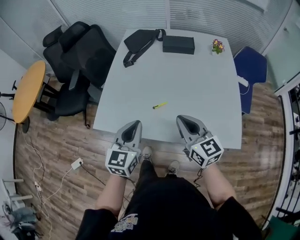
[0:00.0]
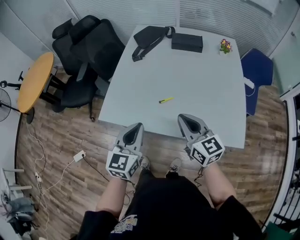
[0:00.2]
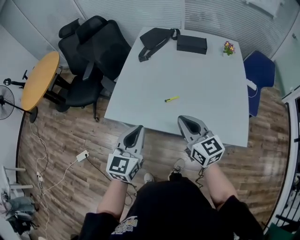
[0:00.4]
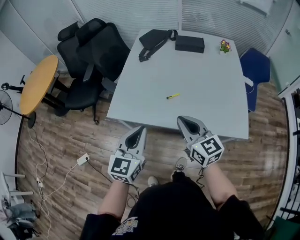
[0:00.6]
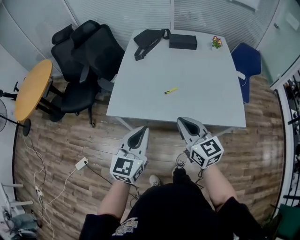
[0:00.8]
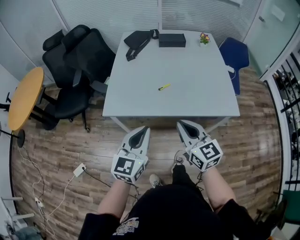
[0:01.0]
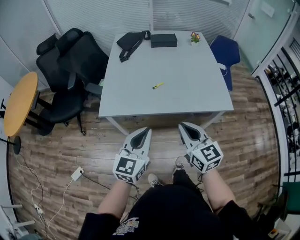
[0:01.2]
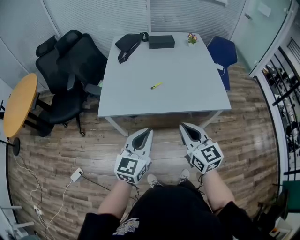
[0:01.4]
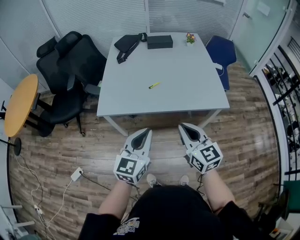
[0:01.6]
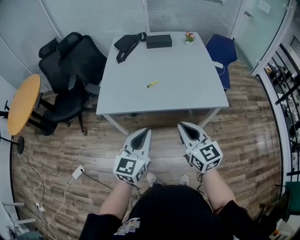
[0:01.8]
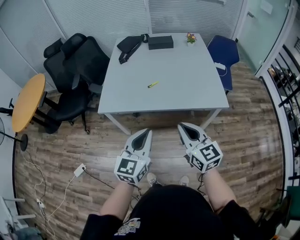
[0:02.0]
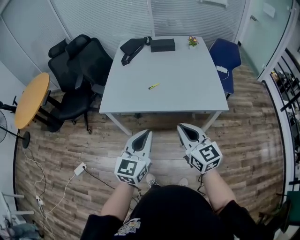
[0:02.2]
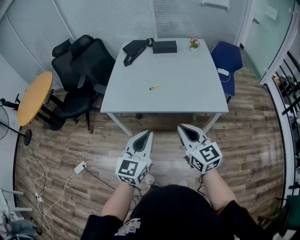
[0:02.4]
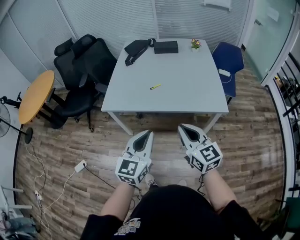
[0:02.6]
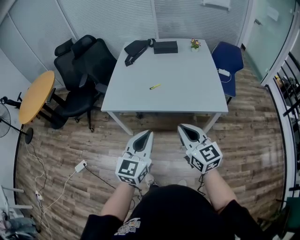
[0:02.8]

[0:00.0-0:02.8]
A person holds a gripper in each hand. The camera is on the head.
0:00.0 to 0:01.4: The grippers both shift backward by roughly 25 cm.
0:01.4 to 0:02.8: Both grippers move to the right and backward, approximately 10 cm.

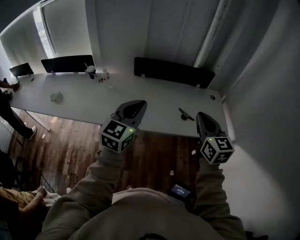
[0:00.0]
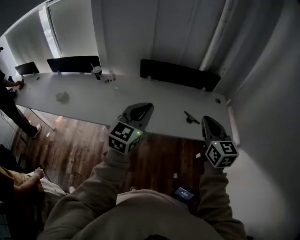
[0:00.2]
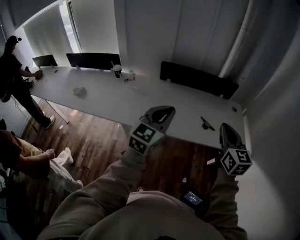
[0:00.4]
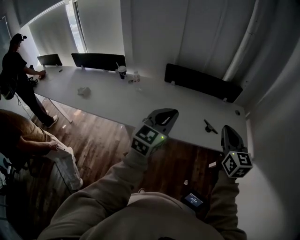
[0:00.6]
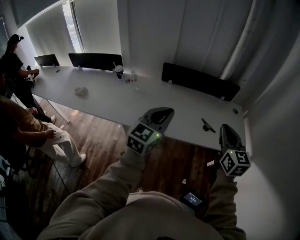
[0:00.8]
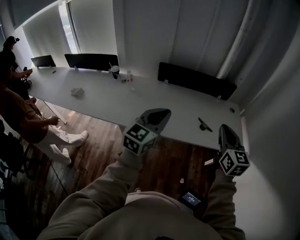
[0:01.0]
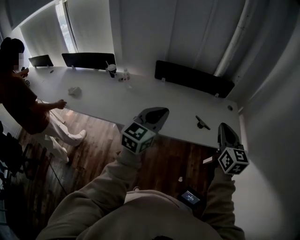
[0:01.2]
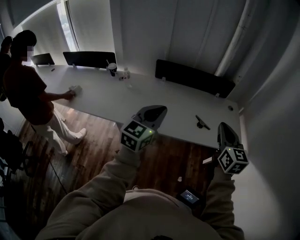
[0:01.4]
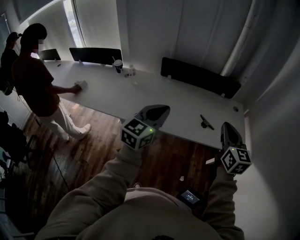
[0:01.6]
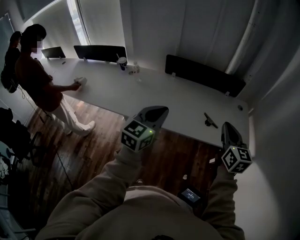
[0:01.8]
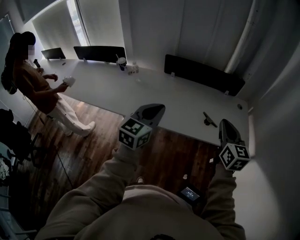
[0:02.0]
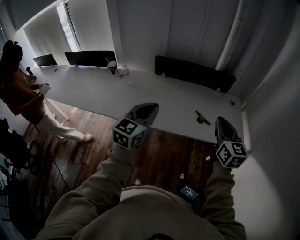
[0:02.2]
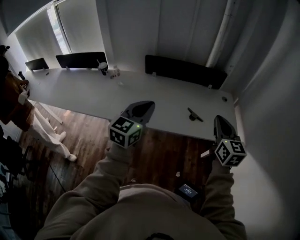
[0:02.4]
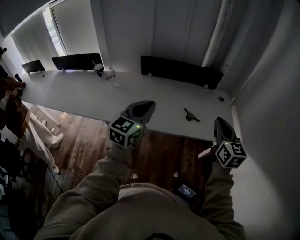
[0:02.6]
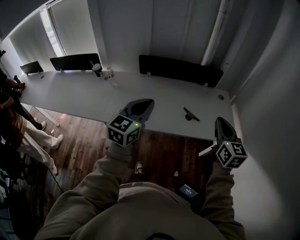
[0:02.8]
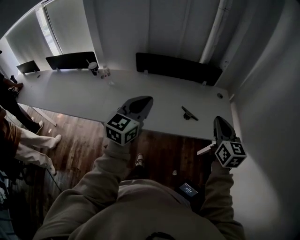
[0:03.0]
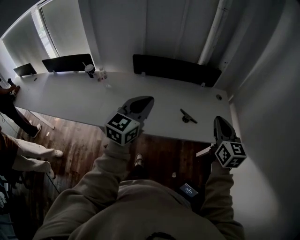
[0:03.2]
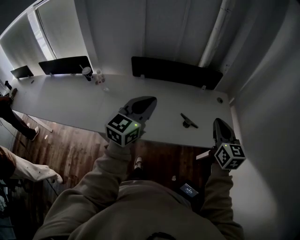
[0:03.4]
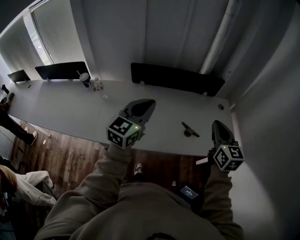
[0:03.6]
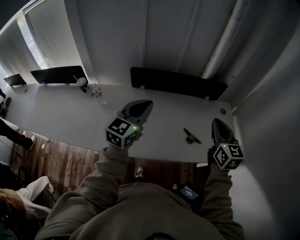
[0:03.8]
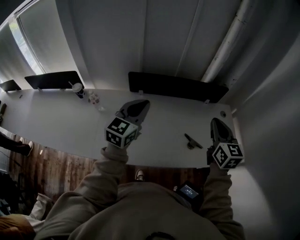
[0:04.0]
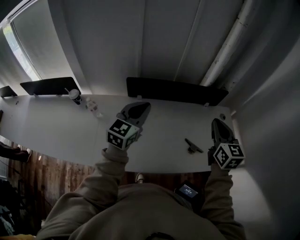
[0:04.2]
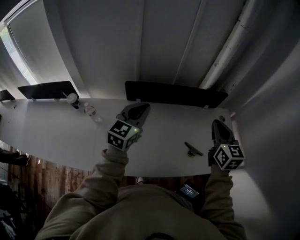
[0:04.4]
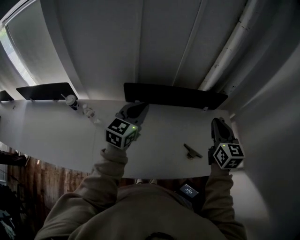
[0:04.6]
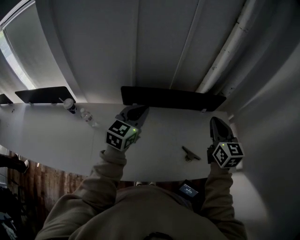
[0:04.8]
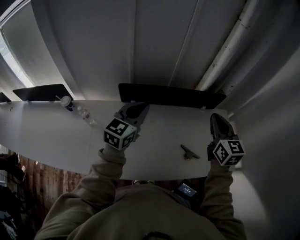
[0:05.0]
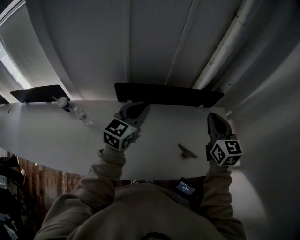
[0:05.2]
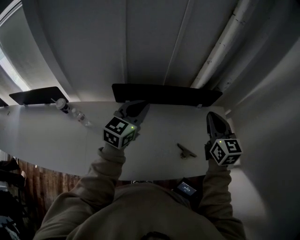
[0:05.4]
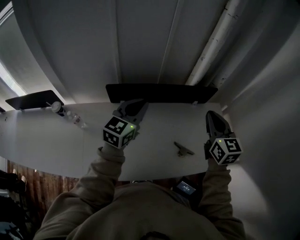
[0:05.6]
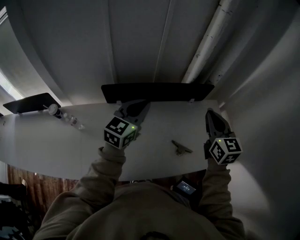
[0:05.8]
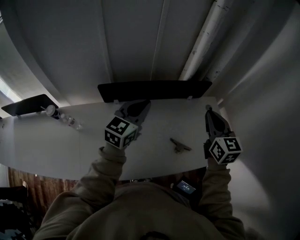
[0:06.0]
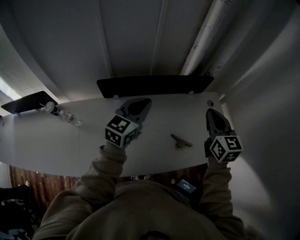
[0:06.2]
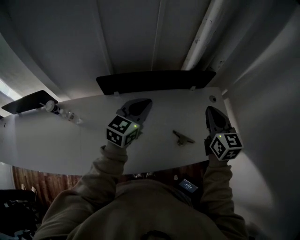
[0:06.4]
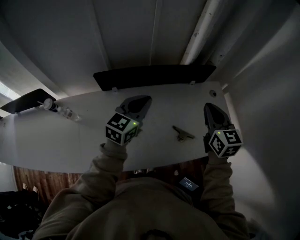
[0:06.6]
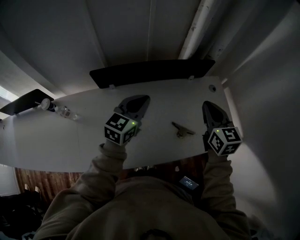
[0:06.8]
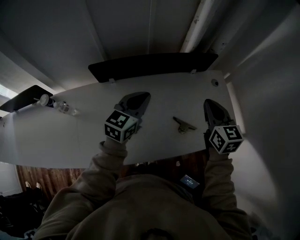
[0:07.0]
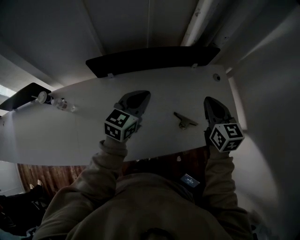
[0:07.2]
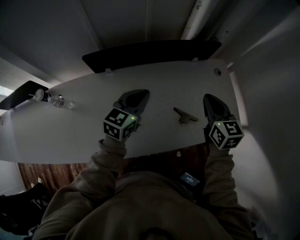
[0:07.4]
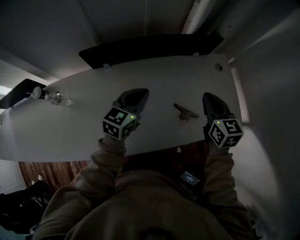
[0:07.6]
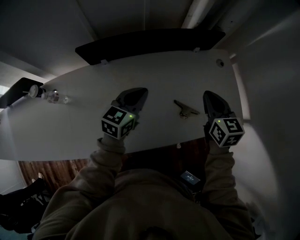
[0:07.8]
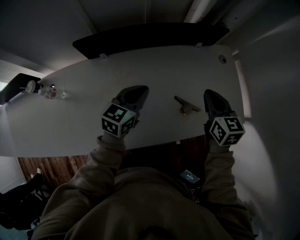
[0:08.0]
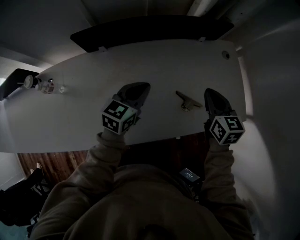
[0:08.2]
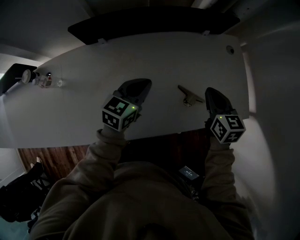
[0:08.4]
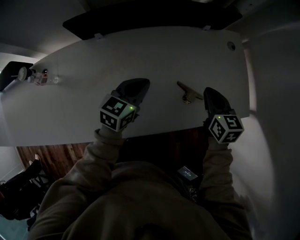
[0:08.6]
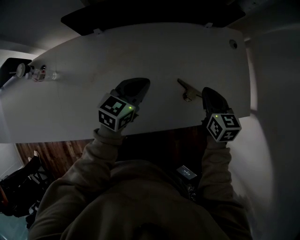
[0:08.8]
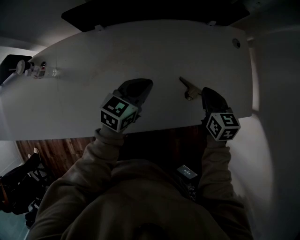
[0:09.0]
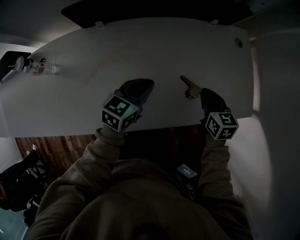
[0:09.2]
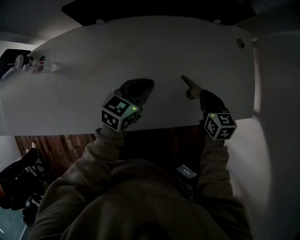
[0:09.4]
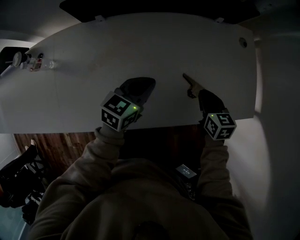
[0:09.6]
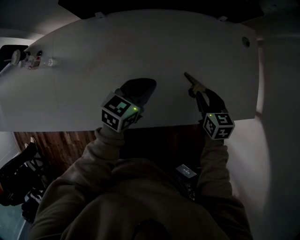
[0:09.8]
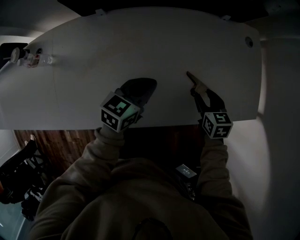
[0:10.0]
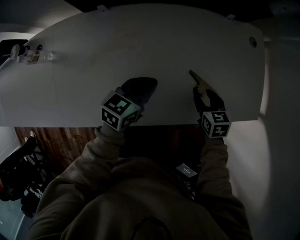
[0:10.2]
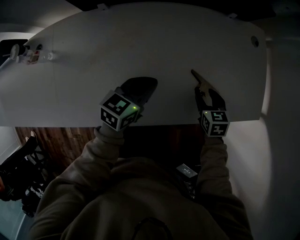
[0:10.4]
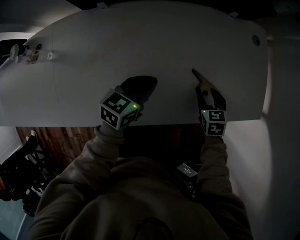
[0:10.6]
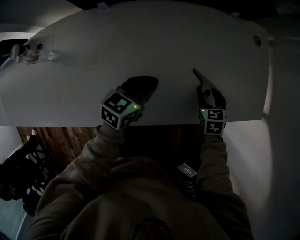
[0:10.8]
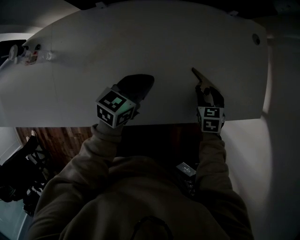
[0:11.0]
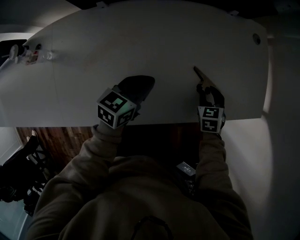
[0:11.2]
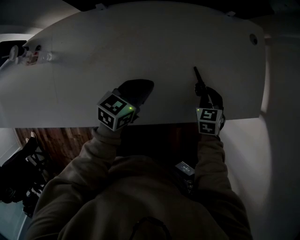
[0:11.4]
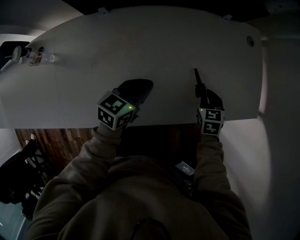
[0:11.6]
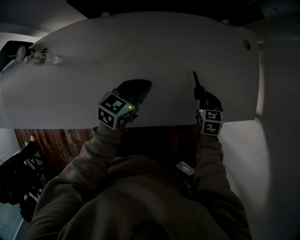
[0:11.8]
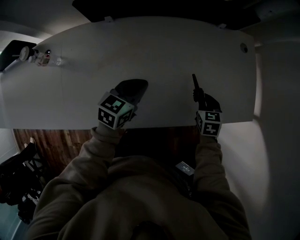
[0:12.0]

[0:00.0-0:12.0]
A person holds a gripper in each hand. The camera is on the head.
0:00.0 to 0:01.6: The right gripper shifts roughly 5 cm to the right.
0:01.6 to 0:03.0: The right gripper heads to the right, covering about 10 cm. The left gripper ends up some 5 cm from where it was.
0:03.0 to 0:04.4: The grippers both shift forward and to the left by some 35 cm.
0:04.4 to 0:06.0: The right gripper heads to the right and forward, covering some 10 cm. Meanwhile the left gripper shifts roughly 15 cm to the right and forward.
0:06.0 to 0:07.6: Both grippers travel together downward, approximately 15 cm.
0:07.6 to 0:09.0: Both grippers travel together downward, some 15 cm.
0:09.0 to 0:10.4: The right gripper moves downward, roughly 15 cm, and opens its fingers; the left gripper heads downward, covering roughly 5 cm.
0:10.4 to 0:12.0: The right gripper closes.

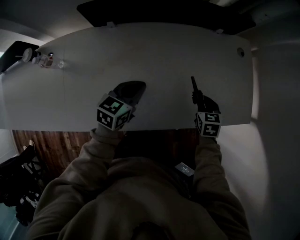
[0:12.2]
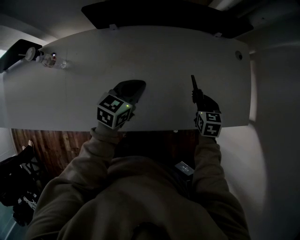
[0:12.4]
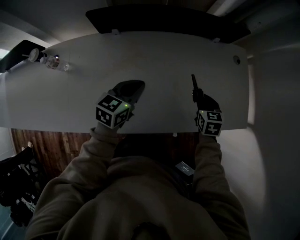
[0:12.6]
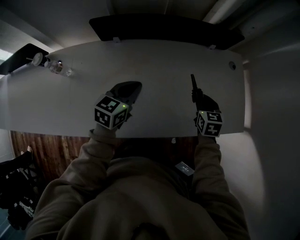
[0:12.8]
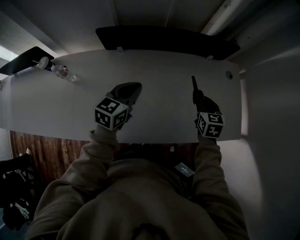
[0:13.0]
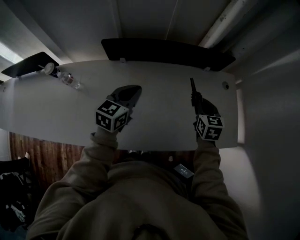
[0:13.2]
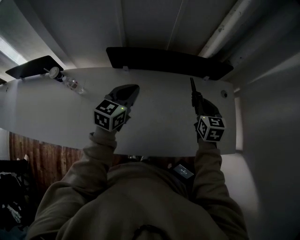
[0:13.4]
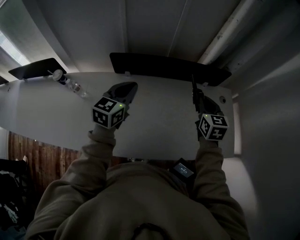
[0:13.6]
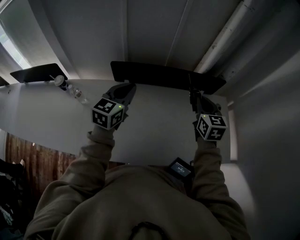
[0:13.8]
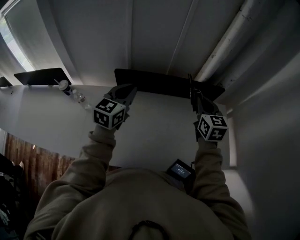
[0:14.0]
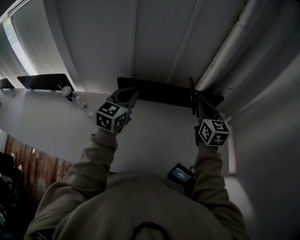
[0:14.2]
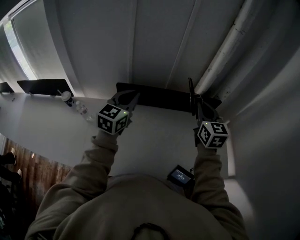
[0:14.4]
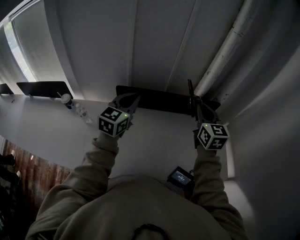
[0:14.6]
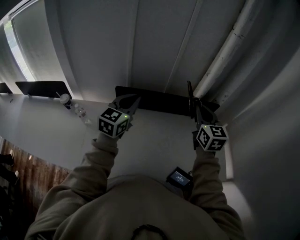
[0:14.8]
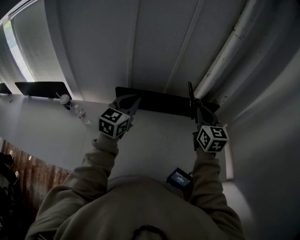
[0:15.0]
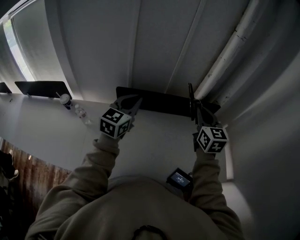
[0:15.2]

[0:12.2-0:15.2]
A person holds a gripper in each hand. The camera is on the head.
0:12.2 to 0:13.8: The right gripper goes approximately 35 cm upward, and tilts its fingers roughly 30 degrees upward. The left gripper goes roughly 30 cm upward and to the left, and turns by some 30 degrees.
0:13.8 to 0:15.2: Both grippers move upward, approximately 10 cm.

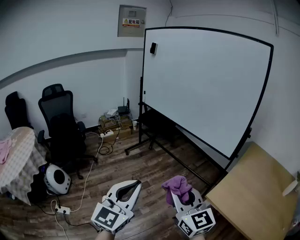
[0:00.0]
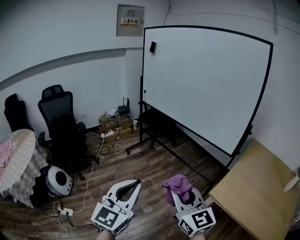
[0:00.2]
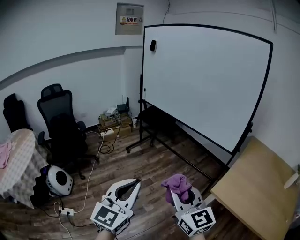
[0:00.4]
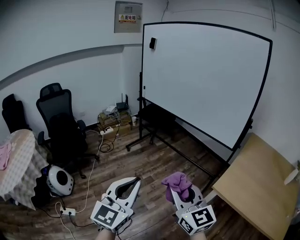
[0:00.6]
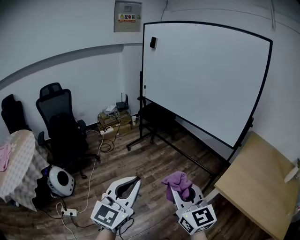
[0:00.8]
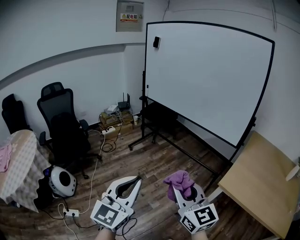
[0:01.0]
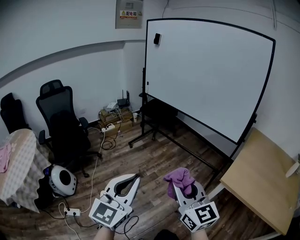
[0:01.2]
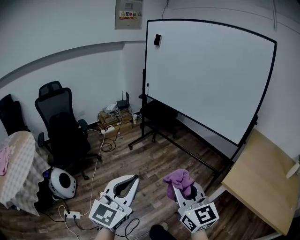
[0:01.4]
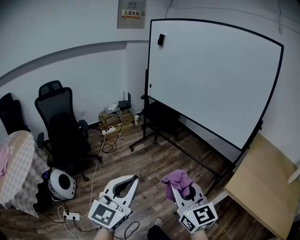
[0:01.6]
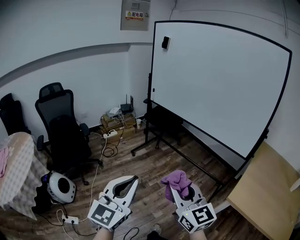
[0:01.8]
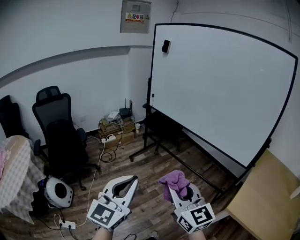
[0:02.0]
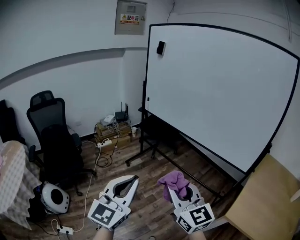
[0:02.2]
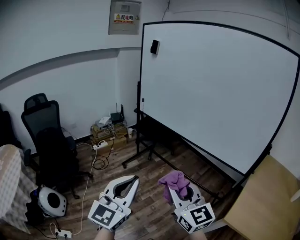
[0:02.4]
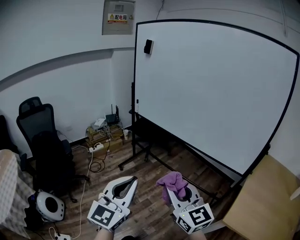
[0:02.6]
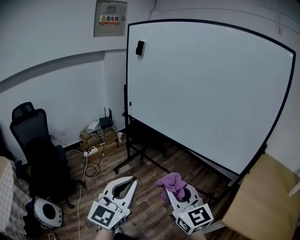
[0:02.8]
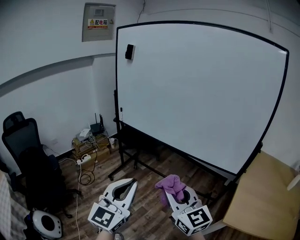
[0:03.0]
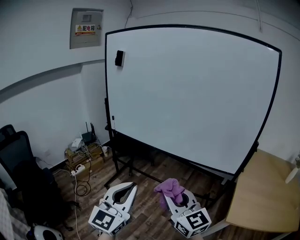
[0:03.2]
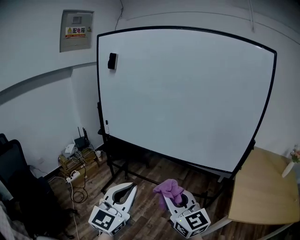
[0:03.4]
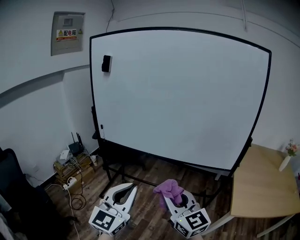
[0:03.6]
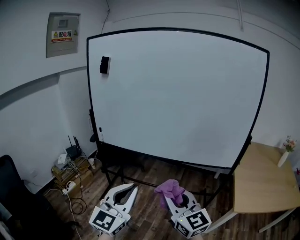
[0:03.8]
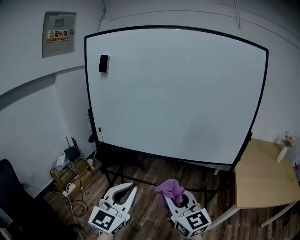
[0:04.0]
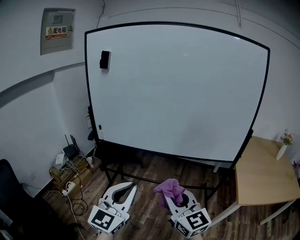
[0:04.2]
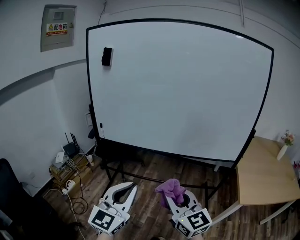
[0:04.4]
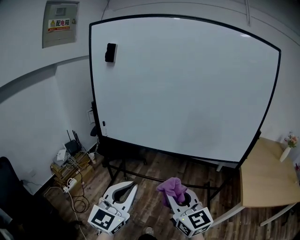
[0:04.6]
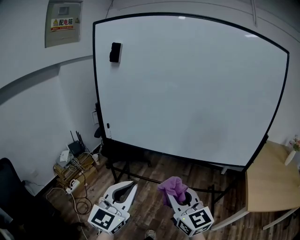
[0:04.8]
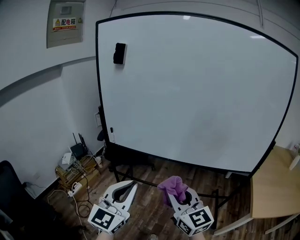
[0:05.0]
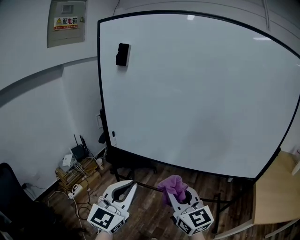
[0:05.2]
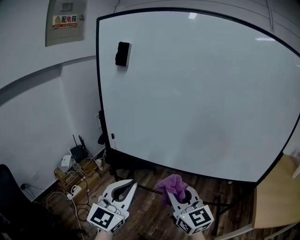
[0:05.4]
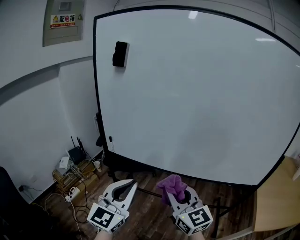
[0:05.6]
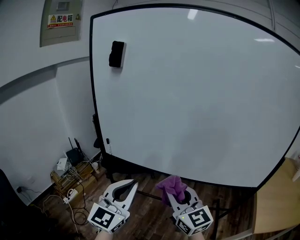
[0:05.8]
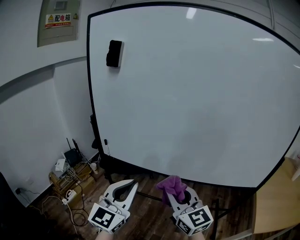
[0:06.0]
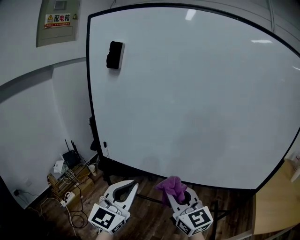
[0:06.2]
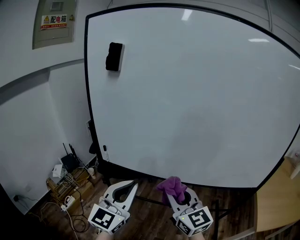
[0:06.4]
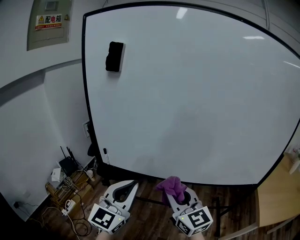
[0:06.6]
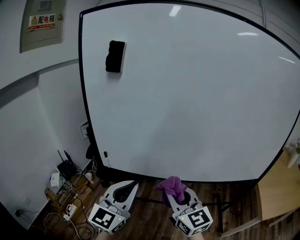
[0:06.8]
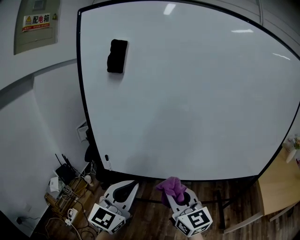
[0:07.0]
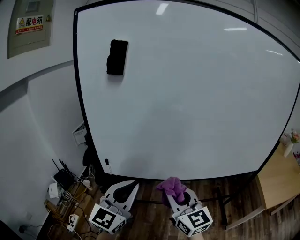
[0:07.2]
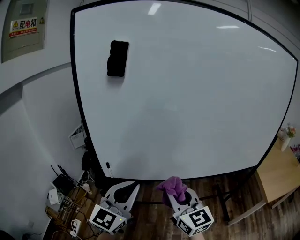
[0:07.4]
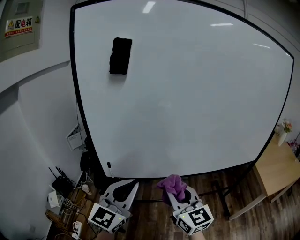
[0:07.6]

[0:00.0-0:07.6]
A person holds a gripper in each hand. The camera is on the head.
0:00.0 to 0:01.6: Both grippers move to the left, about 15 cm.
0:01.6 to 0:03.0: The grippers both shift forward by approximately 30 cm.
0:03.0 to 0:04.6: The grippers both shift to the left and forward by approximately 20 cm. The left gripper swivels approximately 20 degrees; the right gripper changes its angle by about 20 degrees.
0:04.6 to 0:06.0: Both grippers travel together forward, roughly 25 cm.
0:06.0 to 0:07.6: The left gripper goes some 20 cm to the left and forward, and changes its angle by roughly 20 degrees. Meanwhile the right gripper goes some 15 cm to the left, and swivels about 20 degrees.
